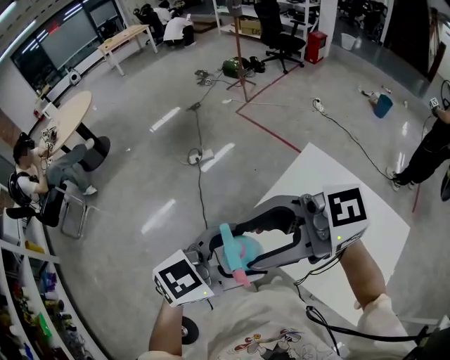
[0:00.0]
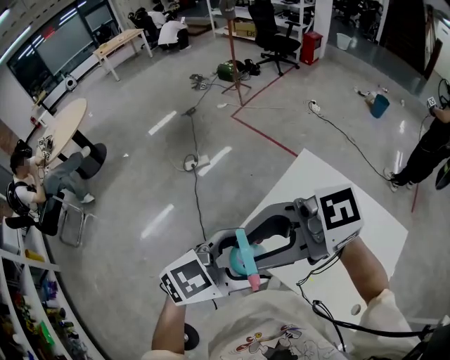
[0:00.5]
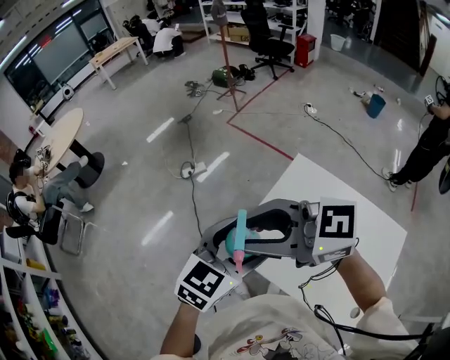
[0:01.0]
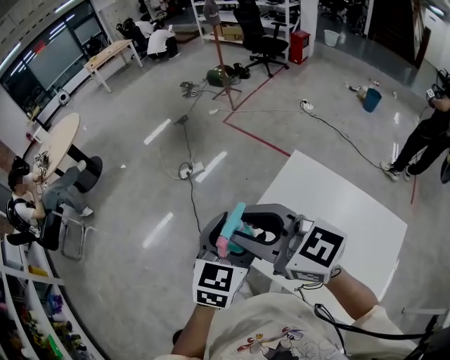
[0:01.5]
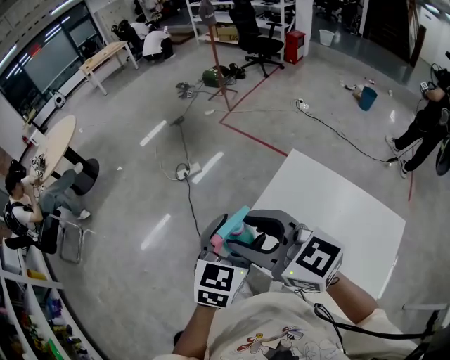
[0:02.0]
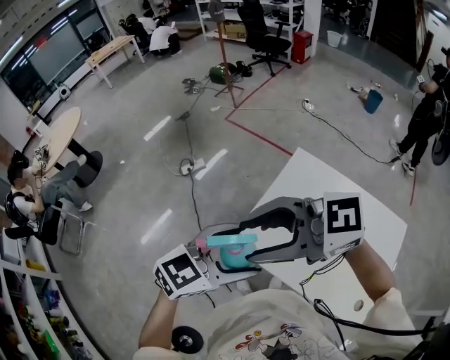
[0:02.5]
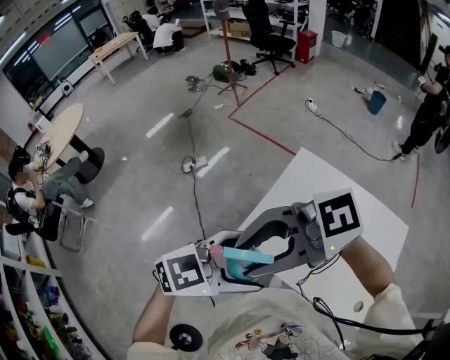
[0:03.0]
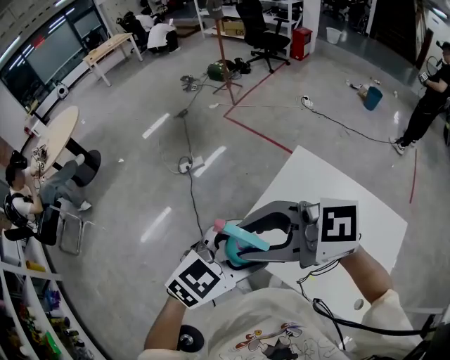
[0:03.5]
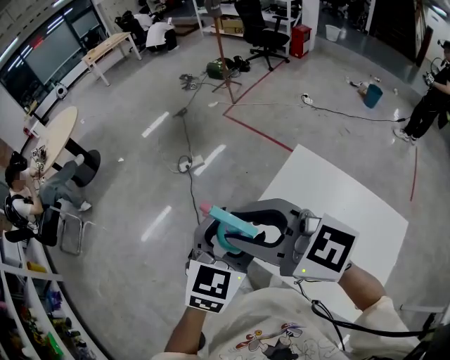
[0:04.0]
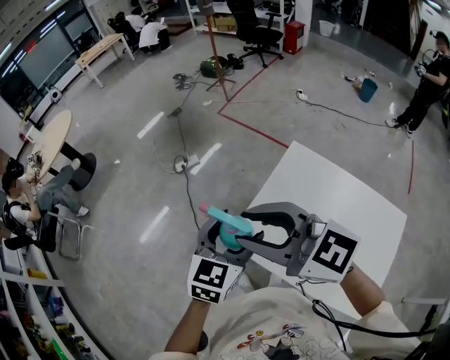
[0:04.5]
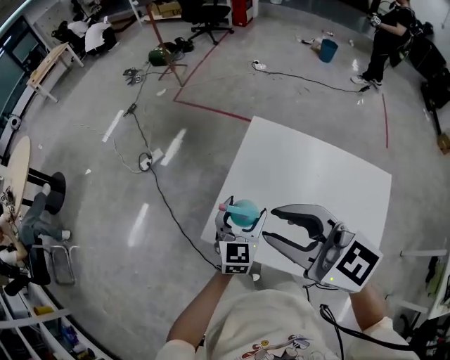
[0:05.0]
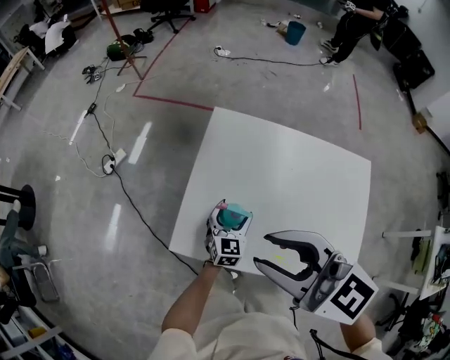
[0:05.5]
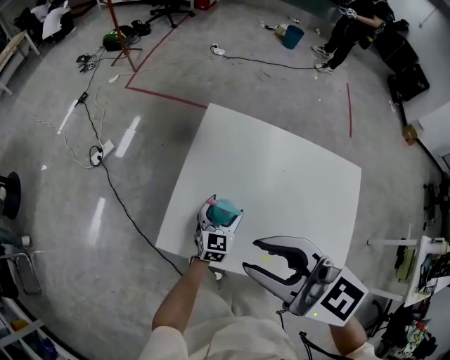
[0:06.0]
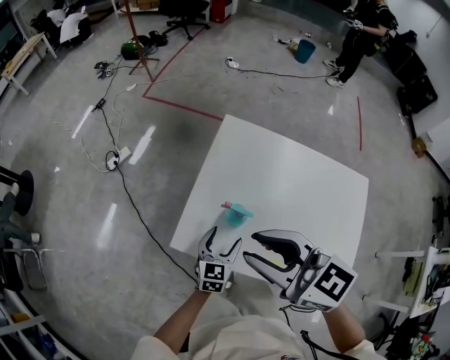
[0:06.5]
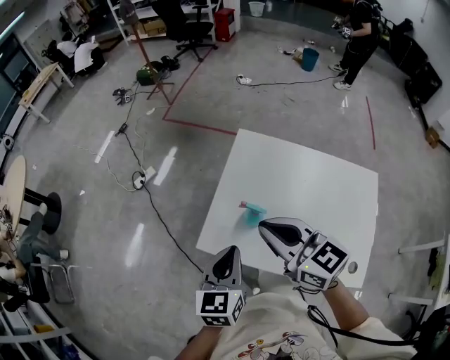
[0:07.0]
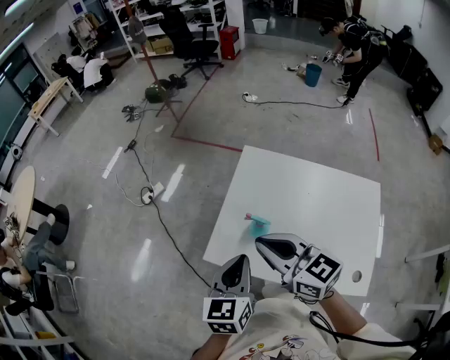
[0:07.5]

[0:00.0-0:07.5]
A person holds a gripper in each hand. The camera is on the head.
0:00.0 to 0:02.0: The left gripper changes place by approximately 15 cm, and swivels roughly 40 degrees, while the right gripper changes place by about 10 cm, and swivels roughly 40 degrees.
0:04.0 to 0:05.5: The right gripper shifts by approximately 25 cm, and swivels about 40 degrees. The left gripper travels downward by approximately 40 cm.
0:05.5 to 0:07.5: The right gripper ends up roughly 5 cm from where it was, and closes, while the left gripper travels upward, backward and to the left by approximately 35 cm, turns by approximately 20 degrees, and closes up.
